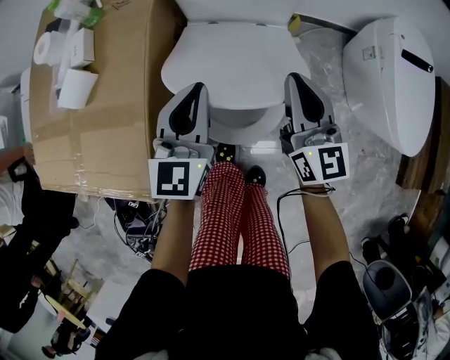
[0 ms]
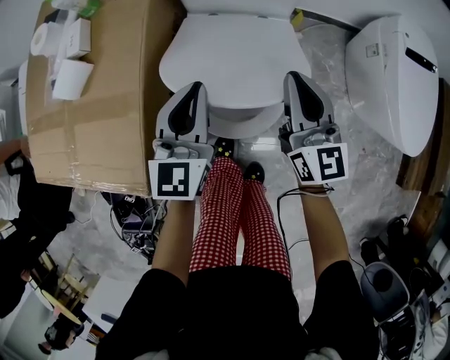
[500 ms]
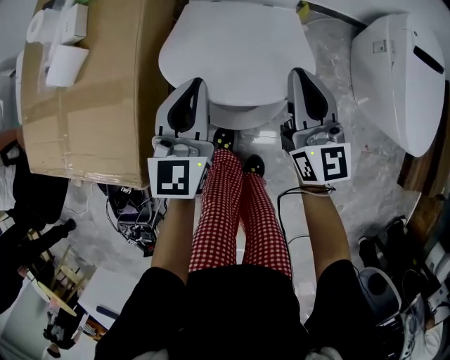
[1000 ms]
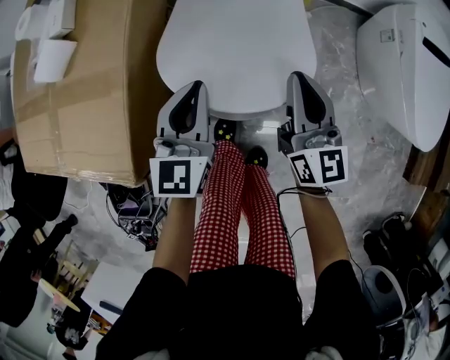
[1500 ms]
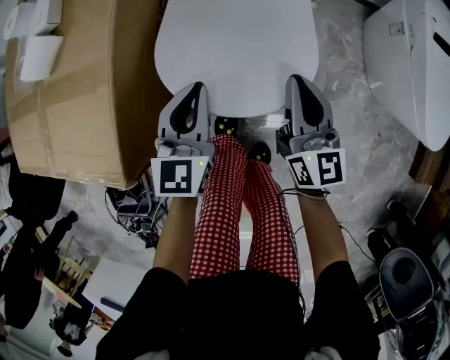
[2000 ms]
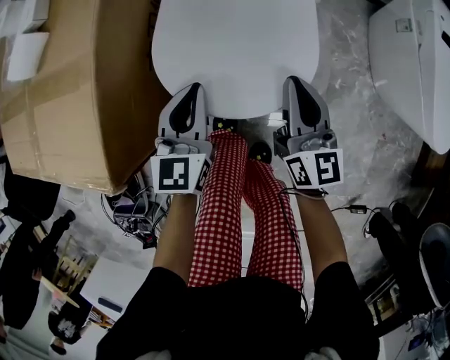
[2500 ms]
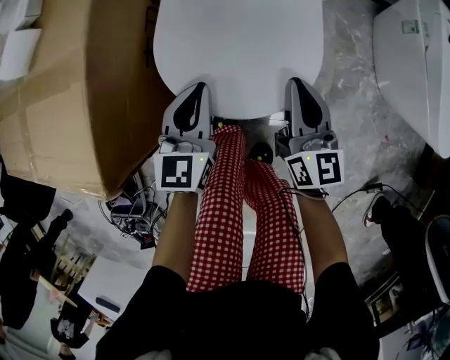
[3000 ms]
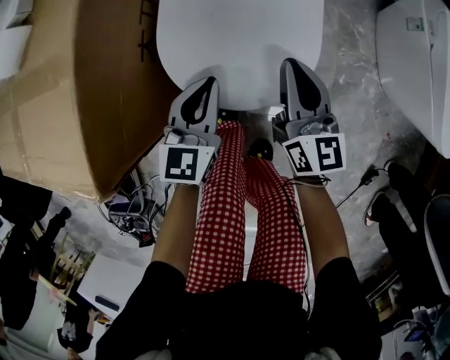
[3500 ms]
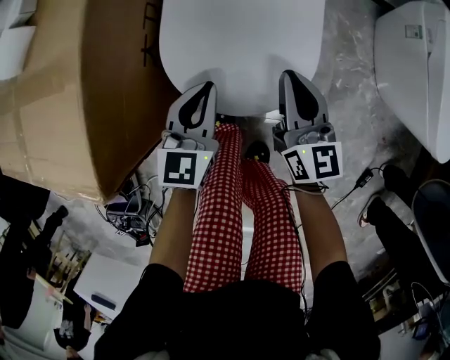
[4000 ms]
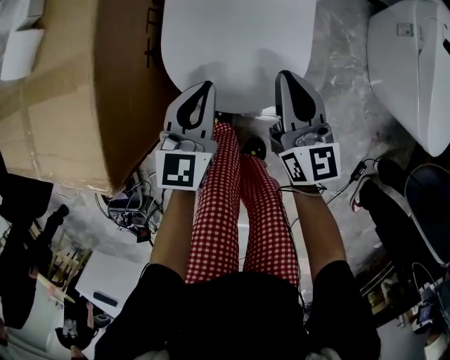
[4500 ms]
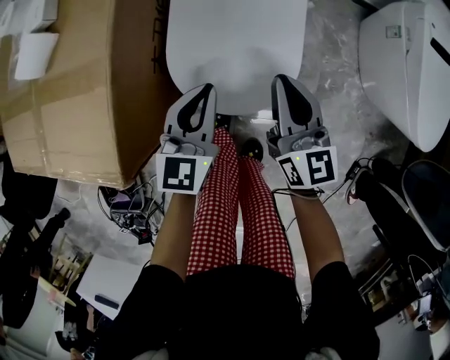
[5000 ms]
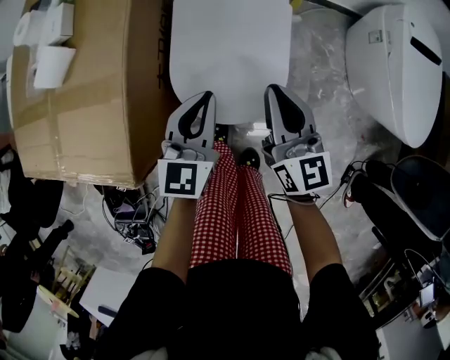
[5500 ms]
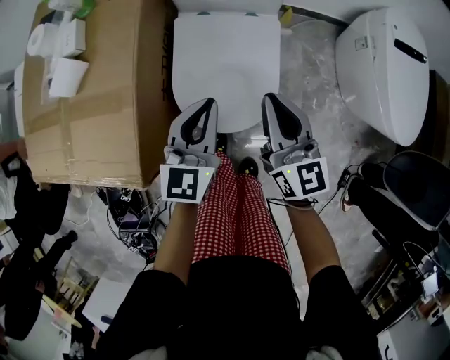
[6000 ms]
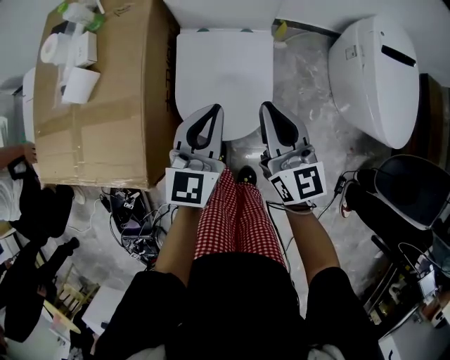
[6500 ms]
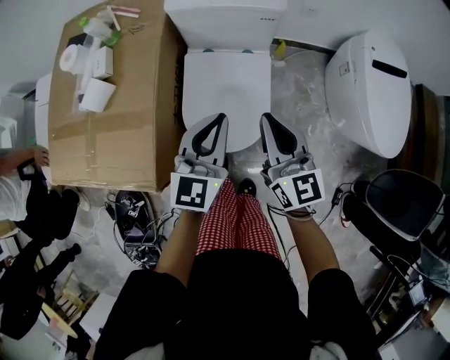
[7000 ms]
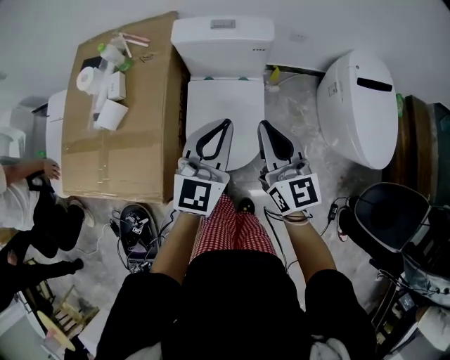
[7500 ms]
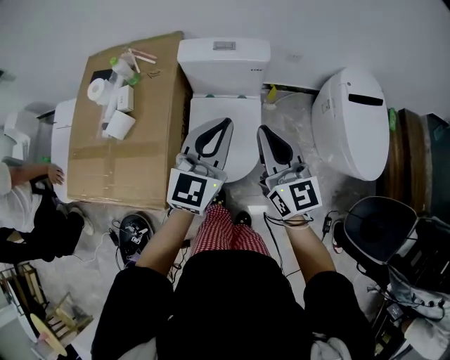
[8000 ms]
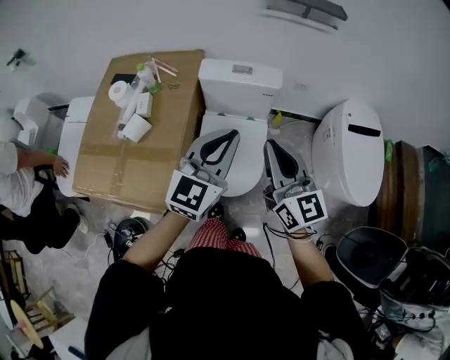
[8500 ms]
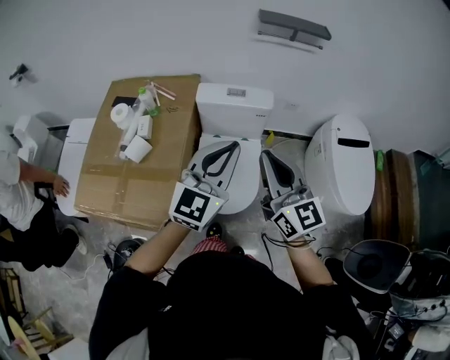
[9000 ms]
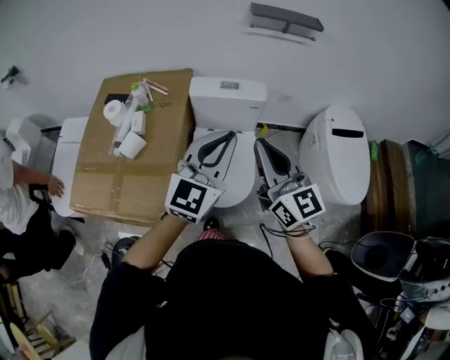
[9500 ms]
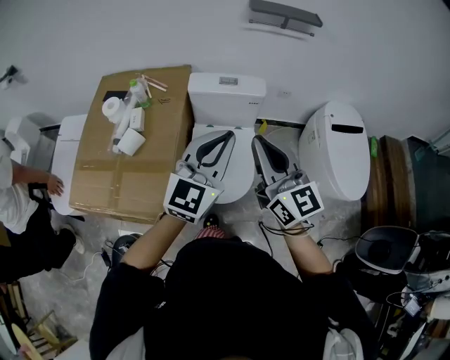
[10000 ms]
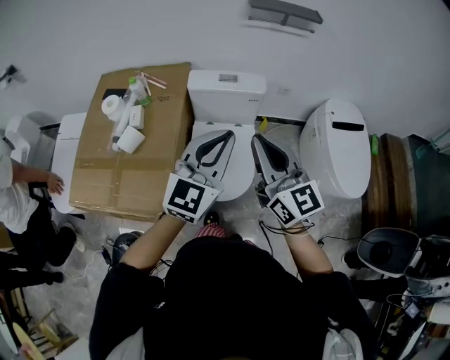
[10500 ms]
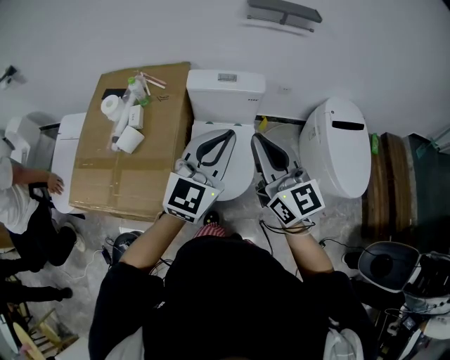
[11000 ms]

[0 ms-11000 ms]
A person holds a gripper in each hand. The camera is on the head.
0 ms to 2000 ms: The grippers both shift downward and backward by roughly 15 cm.
2000 ms to 3500 ms: The two grippers go approximately 10 cm downward.
3500 ms to 5500 ms: Both grippers travel together upward, some 15 cm.
5500 ms to 7500 ms: Both grippers travel together upward, approximately 25 cm.
7500 ms to 9000 ms: The grippers both shift upward by roughly 15 cm.
9000 ms to 11000 ms: The grippers make only small movements.

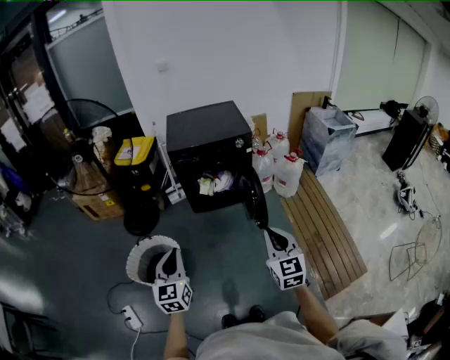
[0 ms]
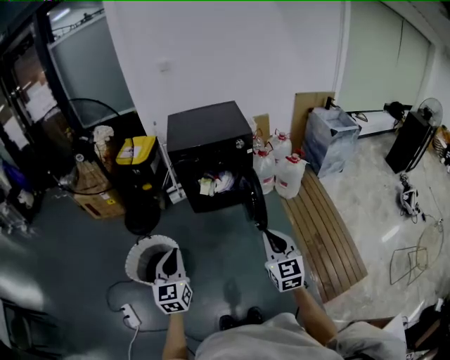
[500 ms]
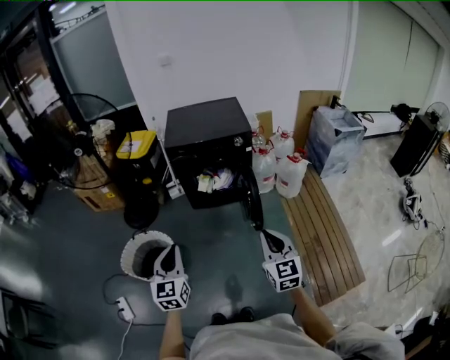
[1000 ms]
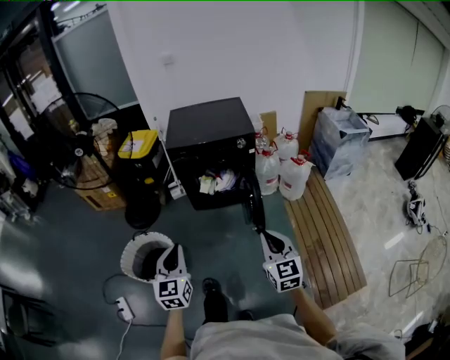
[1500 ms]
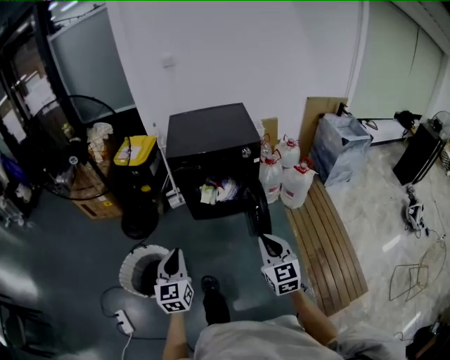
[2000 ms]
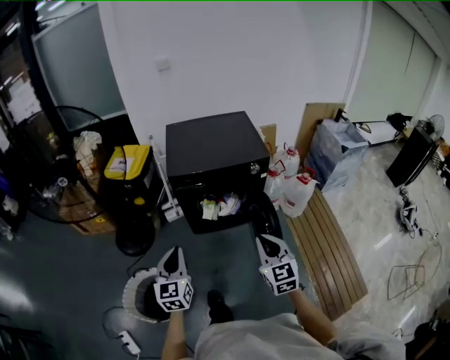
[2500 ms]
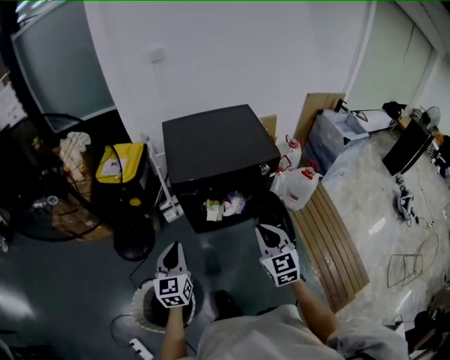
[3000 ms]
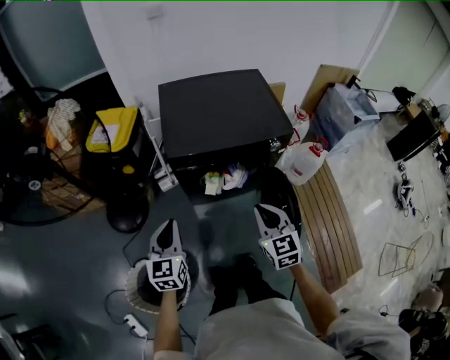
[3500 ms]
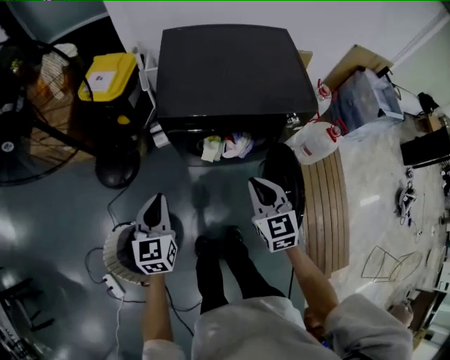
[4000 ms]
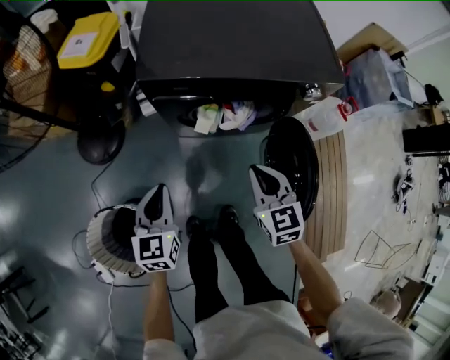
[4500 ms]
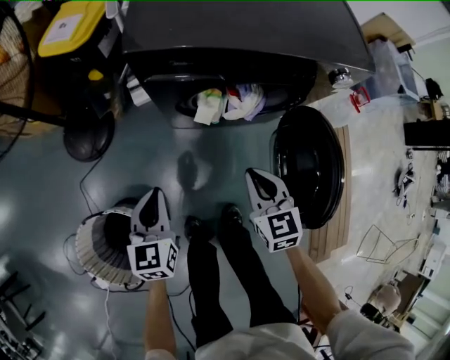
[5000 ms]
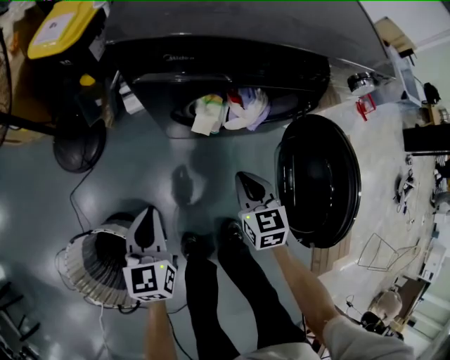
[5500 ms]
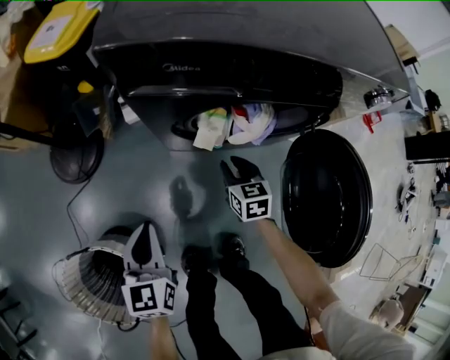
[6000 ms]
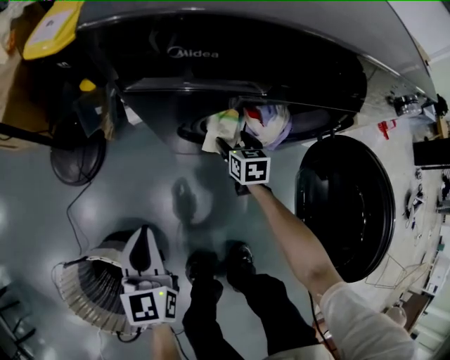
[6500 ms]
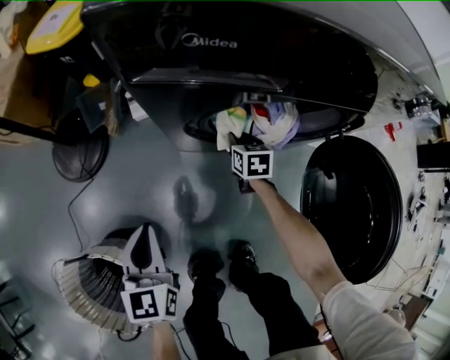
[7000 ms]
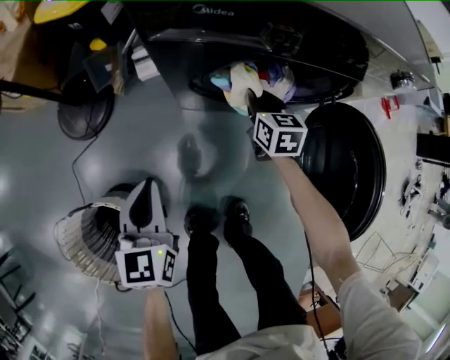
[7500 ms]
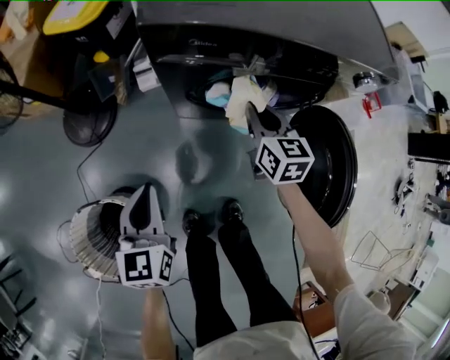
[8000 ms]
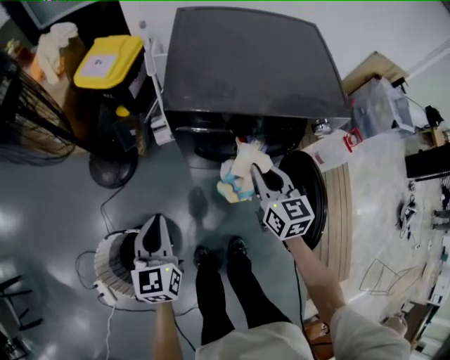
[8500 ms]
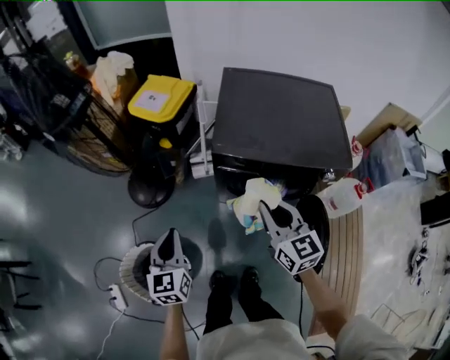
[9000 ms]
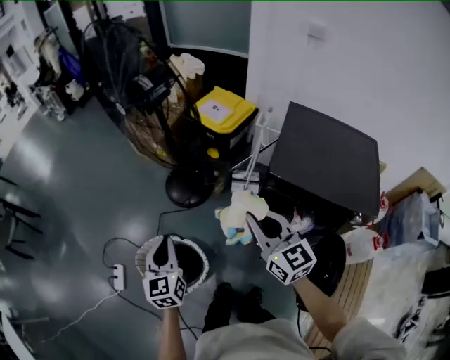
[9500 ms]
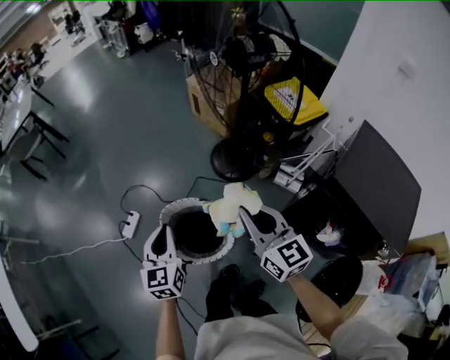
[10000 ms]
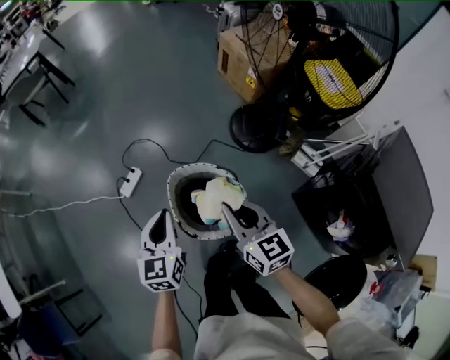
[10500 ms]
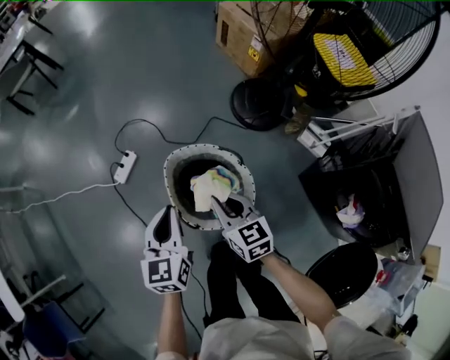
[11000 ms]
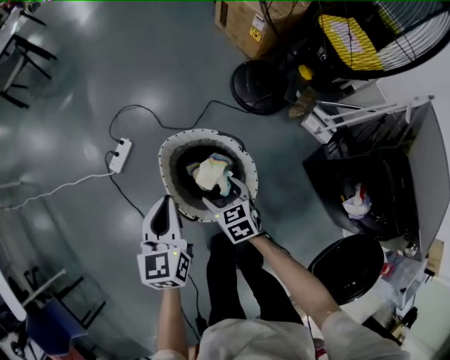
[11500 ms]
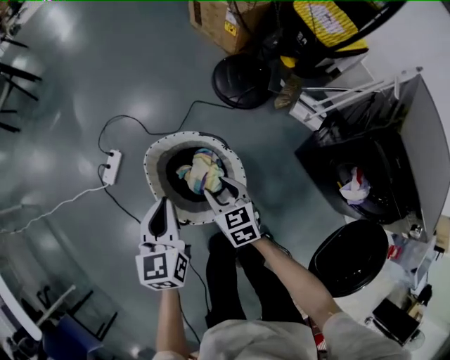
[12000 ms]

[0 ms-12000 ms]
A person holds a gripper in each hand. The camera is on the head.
0 ms to 2000 ms: The grippers both shift forward by roughly 15 cm.
2000 ms to 4000 ms: Both grippers are carried forward, about 40 cm.
4000 ms to 6000 ms: Both grippers travel together downward, about 40 cm. The right gripper changes its angle by about 20 degrees.
6000 ms to 8000 ms: The right gripper goes about 20 cm upward, and opens and closes again; the left gripper heads upward, covering about 10 cm.
8000 ms to 10000 ms: Both grippers are carried about 50 cm. The left gripper rotates approximately 50 degrees, while the right gripper swivels roughly 70 degrees.
10000 ms to 12000 ms: The left gripper travels downward by approximately 20 cm. The right gripper moves downward, about 40 cm, tilts its fingers roughly 30 degrees downward, and opens.

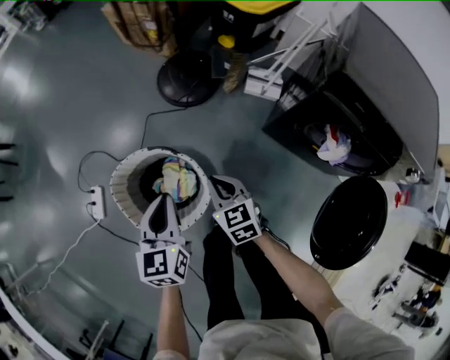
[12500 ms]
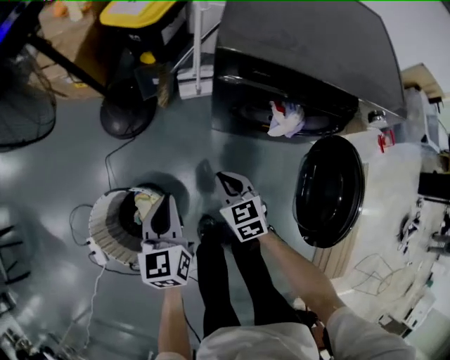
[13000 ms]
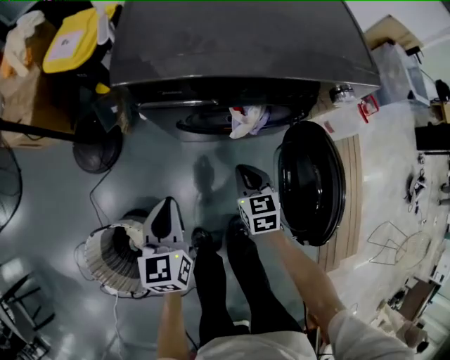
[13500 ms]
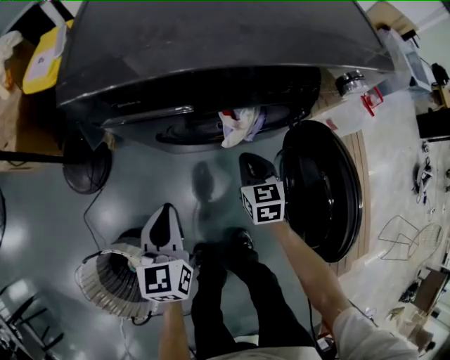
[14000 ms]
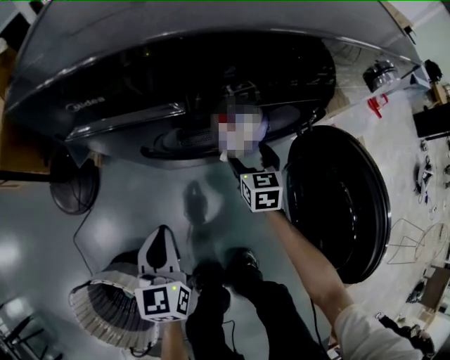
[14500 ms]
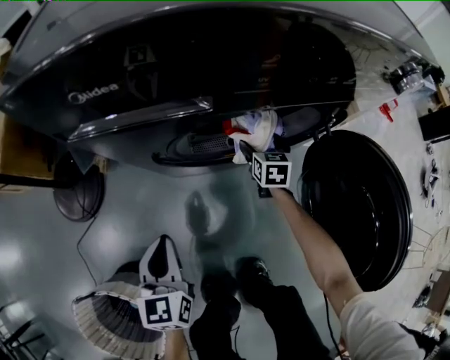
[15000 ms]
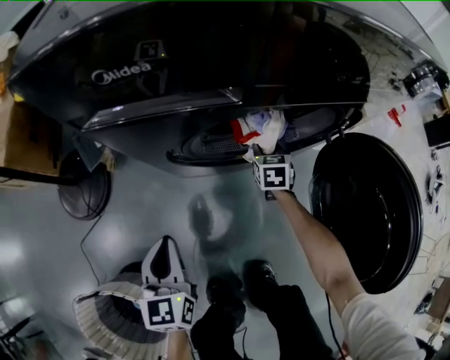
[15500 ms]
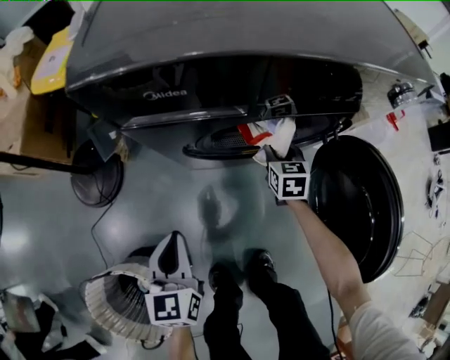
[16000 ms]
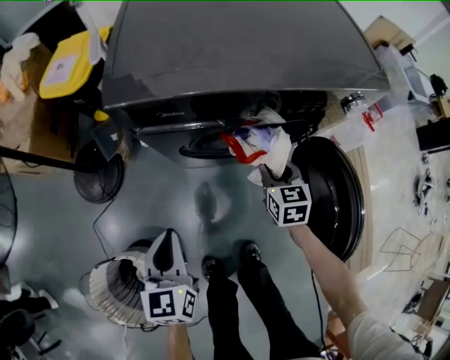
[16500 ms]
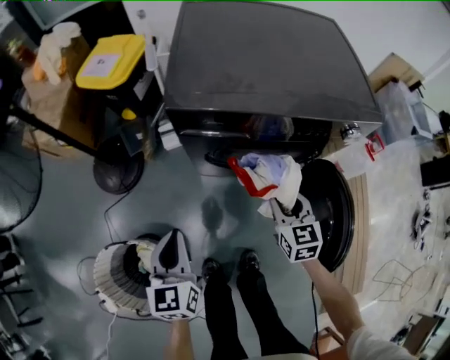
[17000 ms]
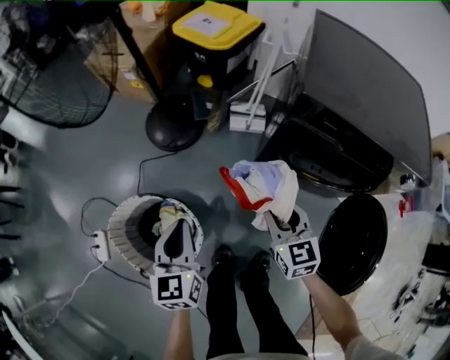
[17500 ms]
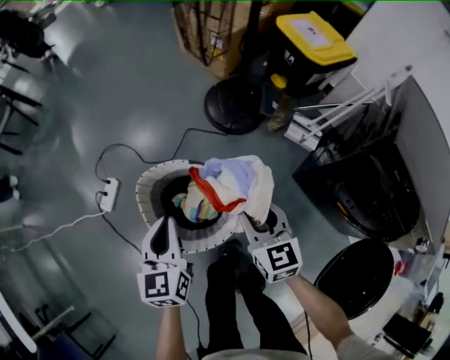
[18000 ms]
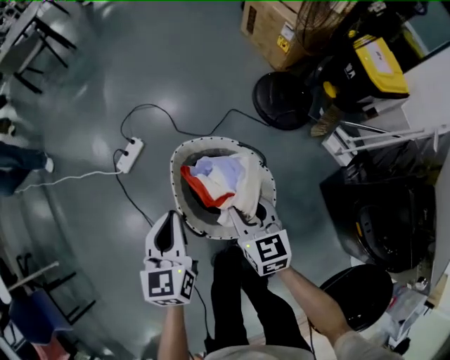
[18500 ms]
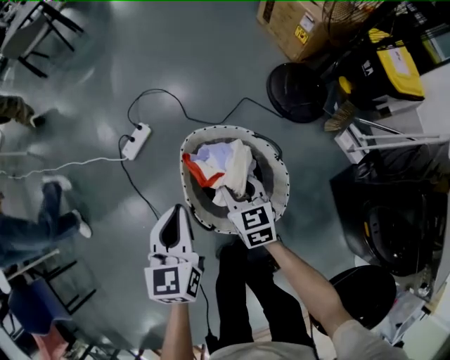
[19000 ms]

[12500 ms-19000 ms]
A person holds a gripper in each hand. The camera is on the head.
12500 ms to 14500 ms: The pair of grippers is taken roughly 50 cm. The right gripper changes its angle by roughly 60 degrees, and opens, while the left gripper rotates roughly 40 degrees.
14500 ms to 17000 ms: The right gripper is displaced upward and backward by approximately 30 cm, and closes. The left gripper is displaced upward by about 20 cm.
17000 ms to 19000 ms: Both grippers are carried some 70 cm. The left gripper rotates some 60 degrees; the right gripper swivels approximately 80 degrees.
